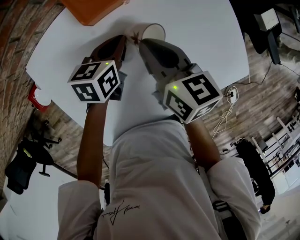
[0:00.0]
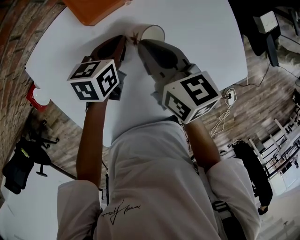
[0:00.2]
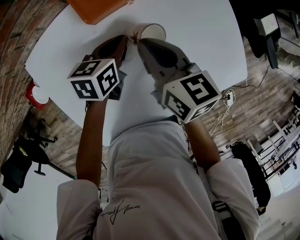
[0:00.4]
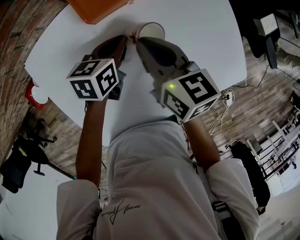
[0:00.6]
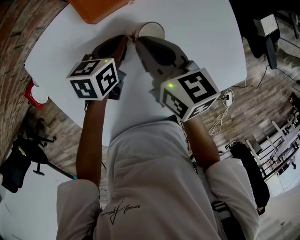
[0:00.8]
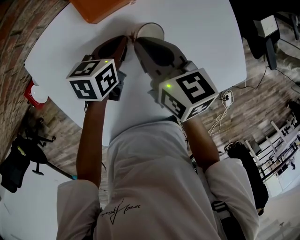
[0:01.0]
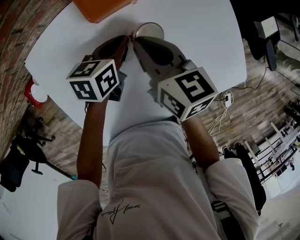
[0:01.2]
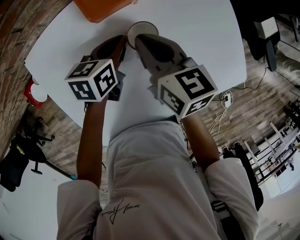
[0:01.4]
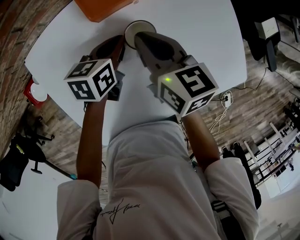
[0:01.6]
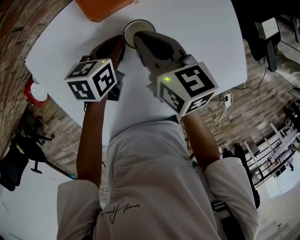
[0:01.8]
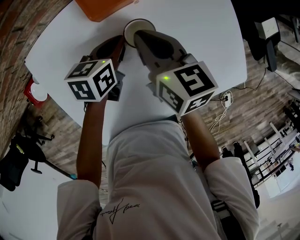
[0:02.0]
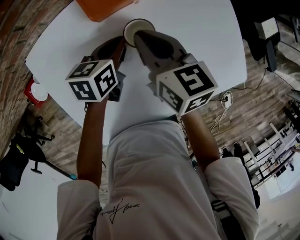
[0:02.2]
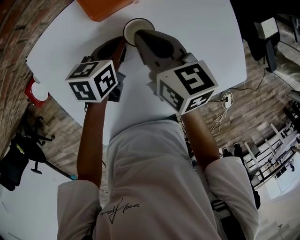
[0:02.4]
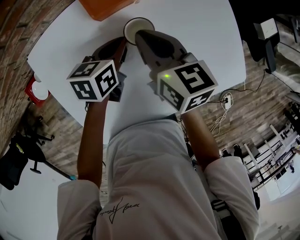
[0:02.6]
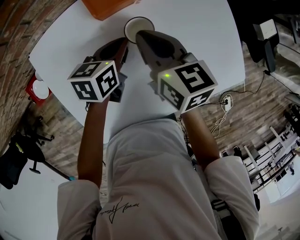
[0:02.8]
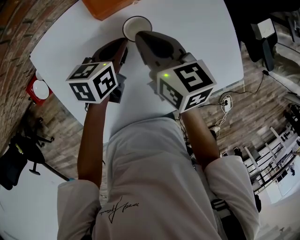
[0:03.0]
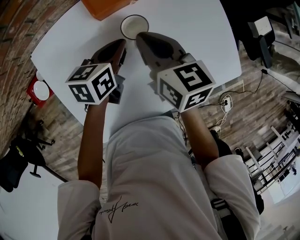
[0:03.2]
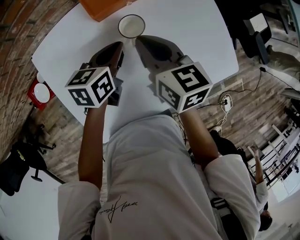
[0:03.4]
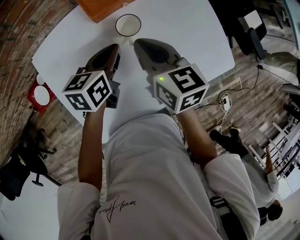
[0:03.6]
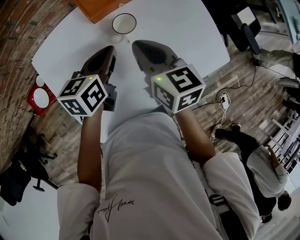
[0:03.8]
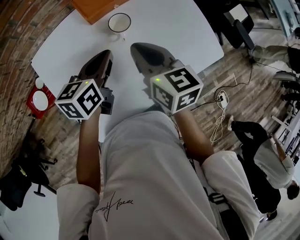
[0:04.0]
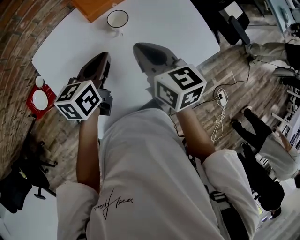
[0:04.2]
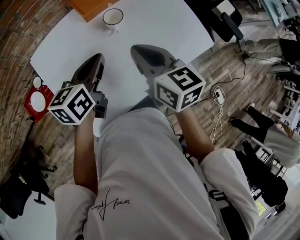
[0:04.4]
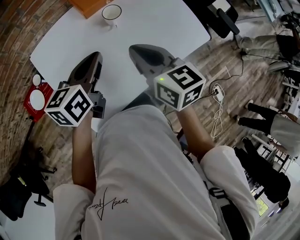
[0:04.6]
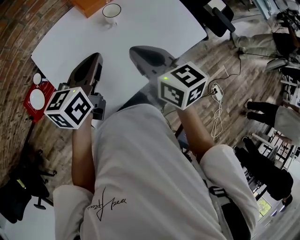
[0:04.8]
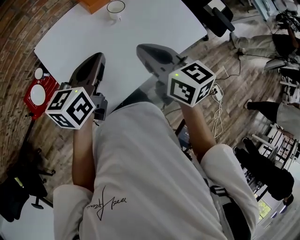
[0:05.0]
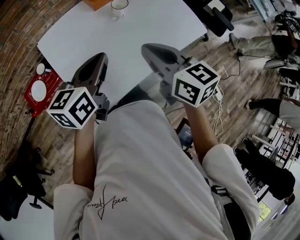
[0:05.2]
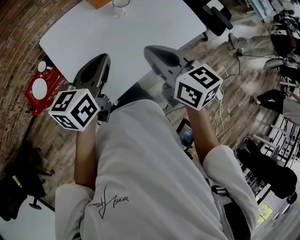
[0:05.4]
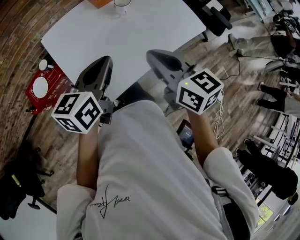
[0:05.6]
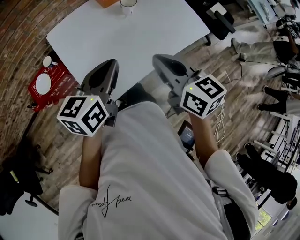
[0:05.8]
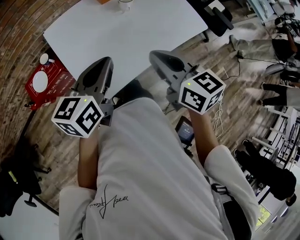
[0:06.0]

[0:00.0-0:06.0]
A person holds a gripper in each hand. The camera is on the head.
0:00.0 to 0:03.0: There are only small adjustments of the grippers.
0:03.0 to 0:04.4: The two grippers go roughly 15 cm backward and upward.
0:04.4 to 0:06.0: The grippers both shift backward by about 20 cm.

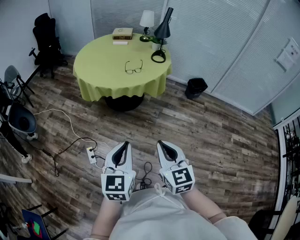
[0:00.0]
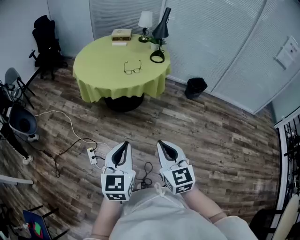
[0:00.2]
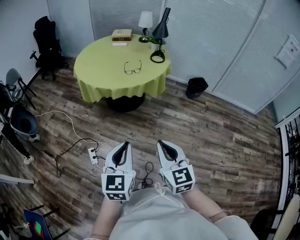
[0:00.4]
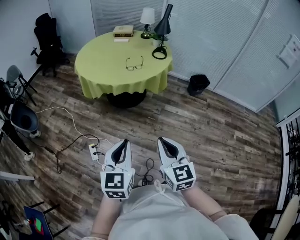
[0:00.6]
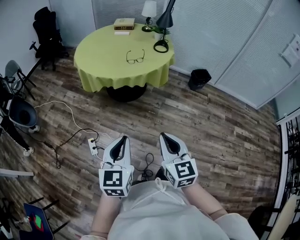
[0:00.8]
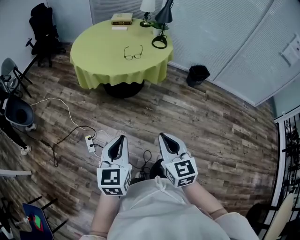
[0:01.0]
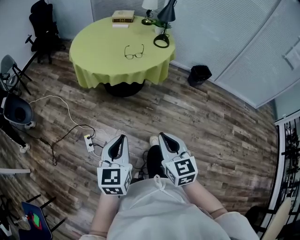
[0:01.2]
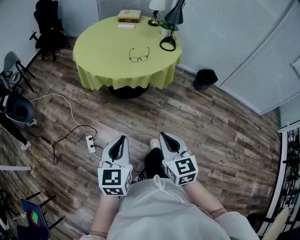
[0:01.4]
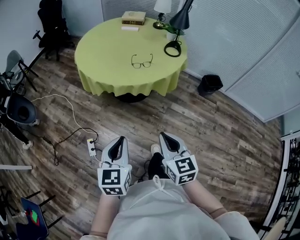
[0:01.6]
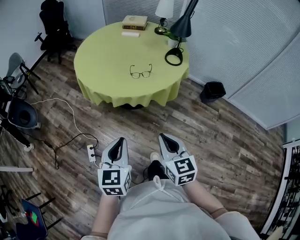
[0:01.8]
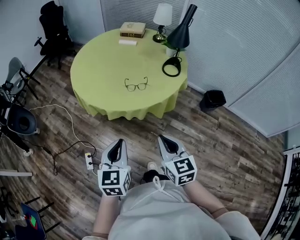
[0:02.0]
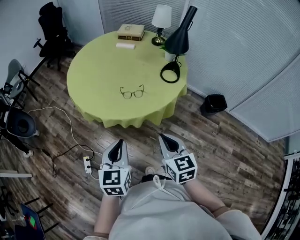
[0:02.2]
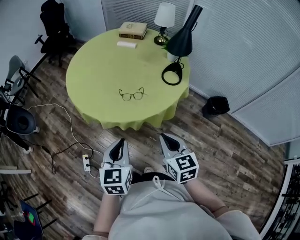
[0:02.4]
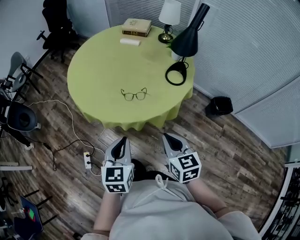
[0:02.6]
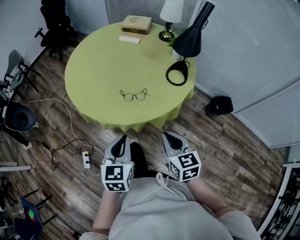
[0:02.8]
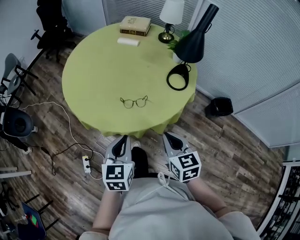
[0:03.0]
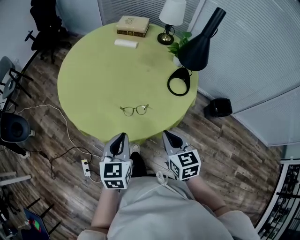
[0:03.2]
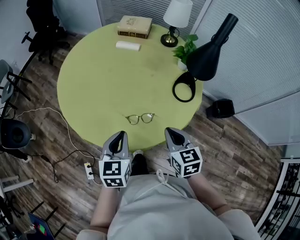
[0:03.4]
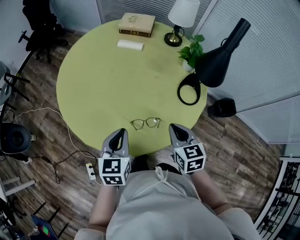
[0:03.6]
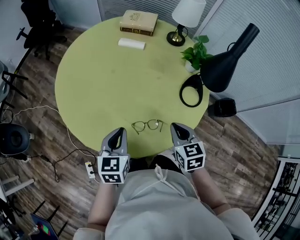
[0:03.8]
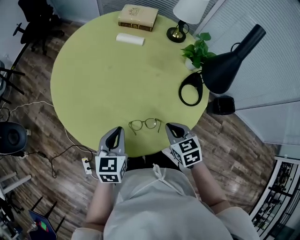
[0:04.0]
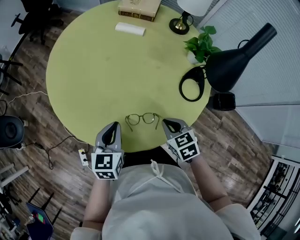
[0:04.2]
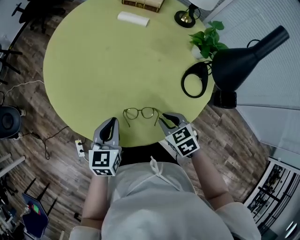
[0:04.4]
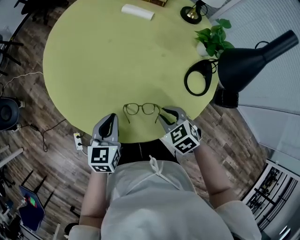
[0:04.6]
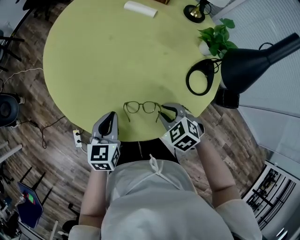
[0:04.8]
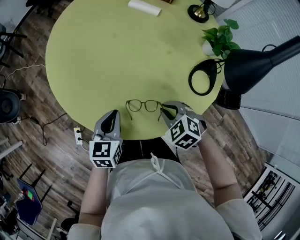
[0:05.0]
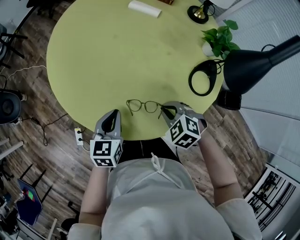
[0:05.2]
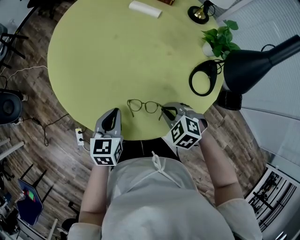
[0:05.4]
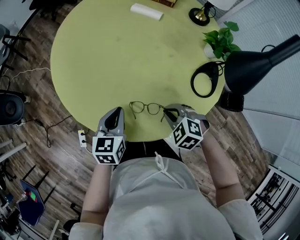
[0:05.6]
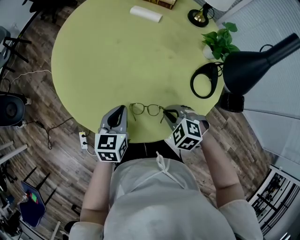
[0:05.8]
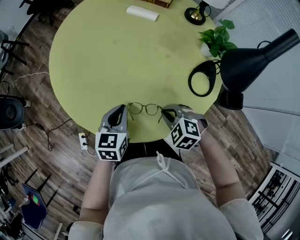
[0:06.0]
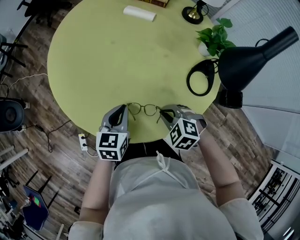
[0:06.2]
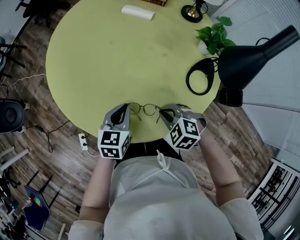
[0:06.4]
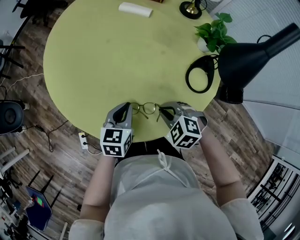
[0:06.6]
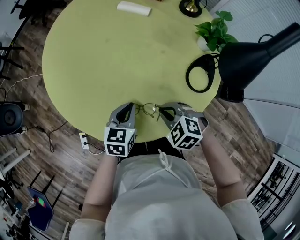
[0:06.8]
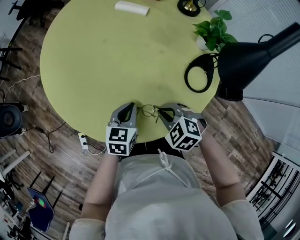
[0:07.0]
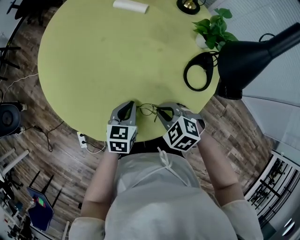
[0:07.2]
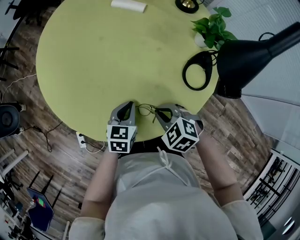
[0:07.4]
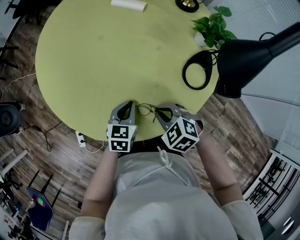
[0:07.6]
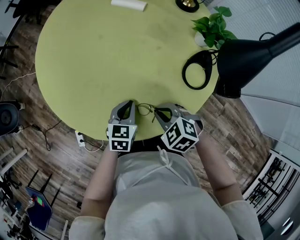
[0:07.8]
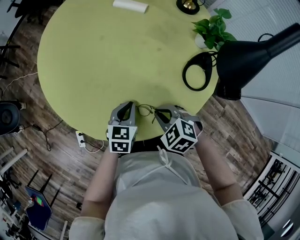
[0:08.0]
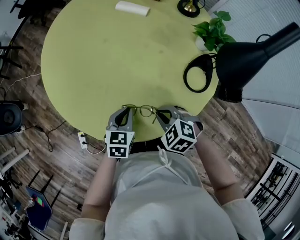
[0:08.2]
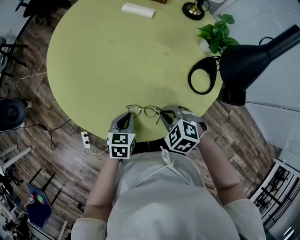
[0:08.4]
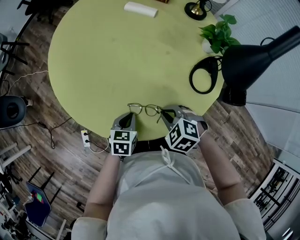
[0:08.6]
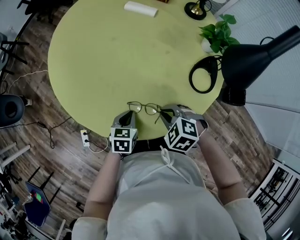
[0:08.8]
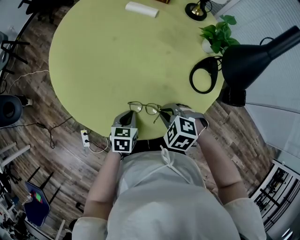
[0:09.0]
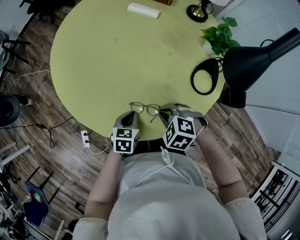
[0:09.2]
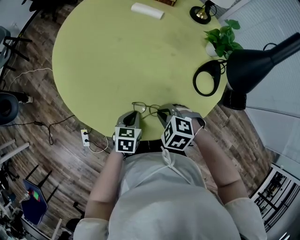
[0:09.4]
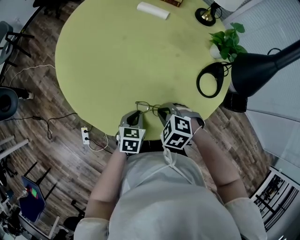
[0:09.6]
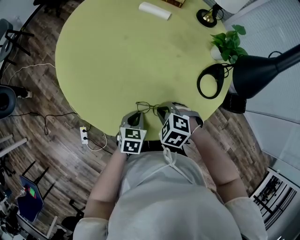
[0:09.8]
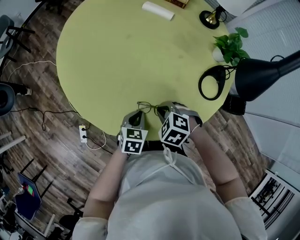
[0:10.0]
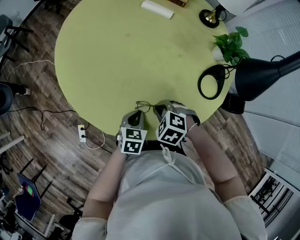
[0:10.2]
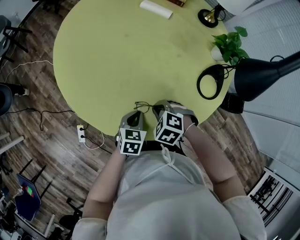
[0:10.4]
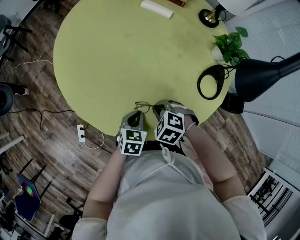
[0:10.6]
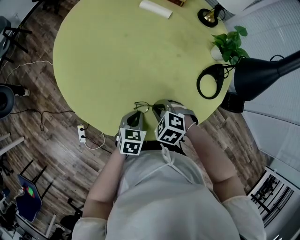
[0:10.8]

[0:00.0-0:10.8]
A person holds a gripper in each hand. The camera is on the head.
0:00.0 to 0:01.6: The grippers both shift forward by roughly 15 cm.
0:01.6 to 0:03.0: The grippers both shift forward and to the right by approximately 40 cm.
0:03.0 to 0:04.6: The two grippers go roughly 25 cm forward and downward. The right gripper swivels about 40 degrees, and opens.
0:04.6 to 0:06.2: The right gripper swivels about 20 degrees.
0:06.2 to 0:07.8: The left gripper is displaced downward and to the right by roughly 10 cm.
0:07.8 to 0:09.2: The left gripper travels to the left by approximately 5 cm.
0:09.2 to 0:10.8: The right gripper shifts by approximately 5 cm.

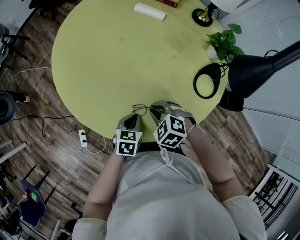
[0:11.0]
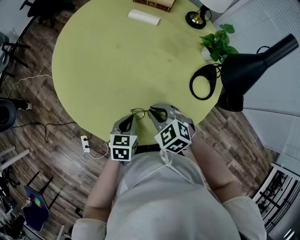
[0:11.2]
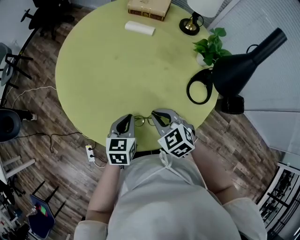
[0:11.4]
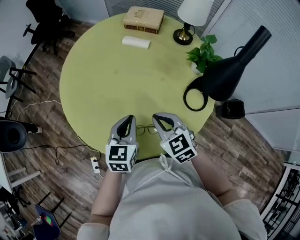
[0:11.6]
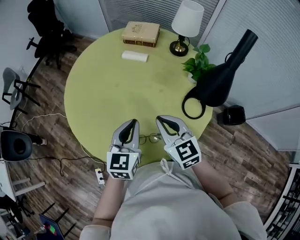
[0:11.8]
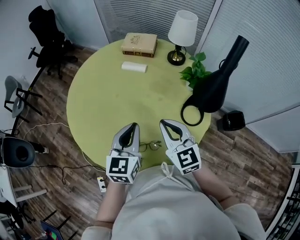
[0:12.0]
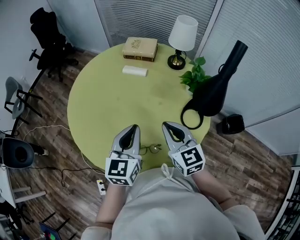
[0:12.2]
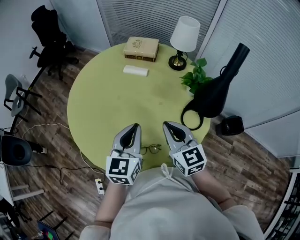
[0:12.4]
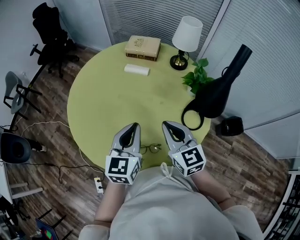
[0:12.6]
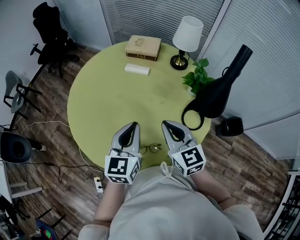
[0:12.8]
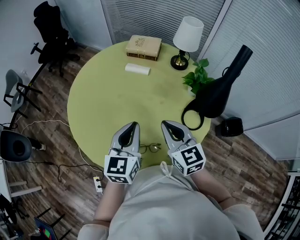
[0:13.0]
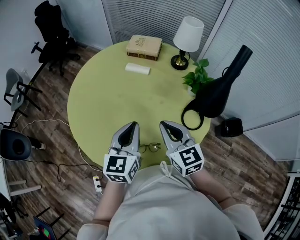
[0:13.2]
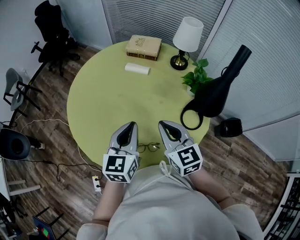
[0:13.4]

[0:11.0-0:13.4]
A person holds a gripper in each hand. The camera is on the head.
0:11.0 to 0:12.2: The two grippers go approximately 25 cm upward. The right gripper points its fingers about 50 degrees further upward. Meanwhile the left gripper angles its fingers upward, by about 40 degrees.
0:12.2 to 0:13.4: The grippers make only small movements.

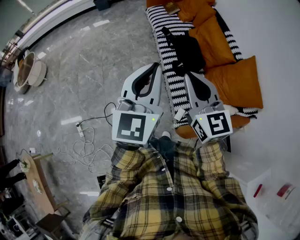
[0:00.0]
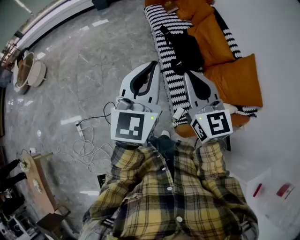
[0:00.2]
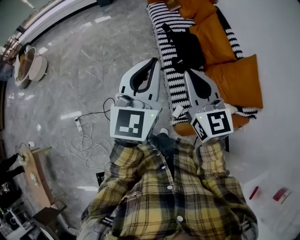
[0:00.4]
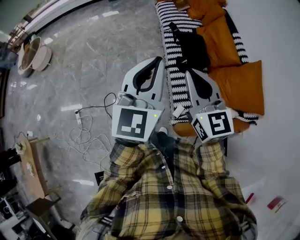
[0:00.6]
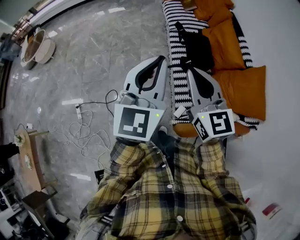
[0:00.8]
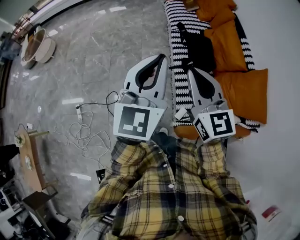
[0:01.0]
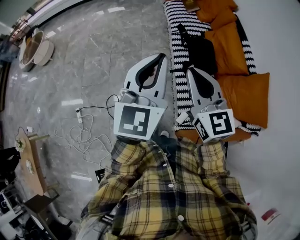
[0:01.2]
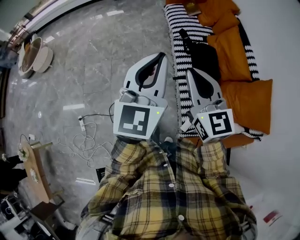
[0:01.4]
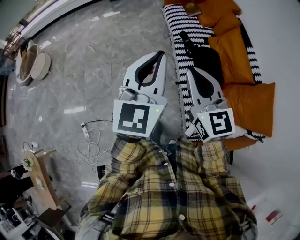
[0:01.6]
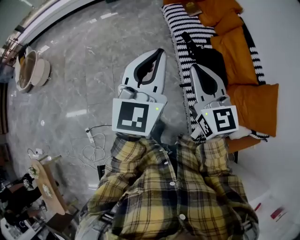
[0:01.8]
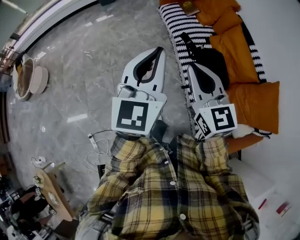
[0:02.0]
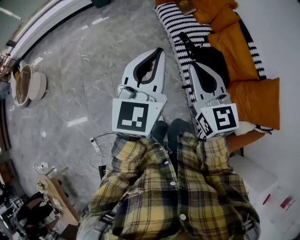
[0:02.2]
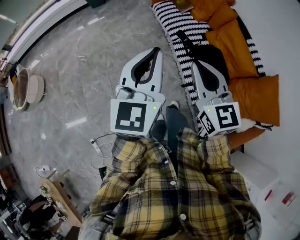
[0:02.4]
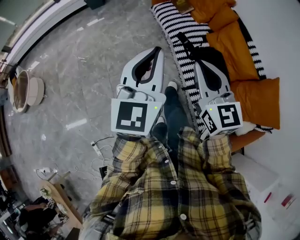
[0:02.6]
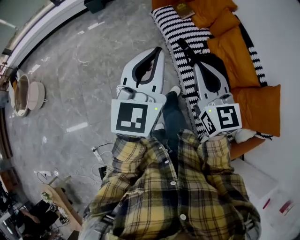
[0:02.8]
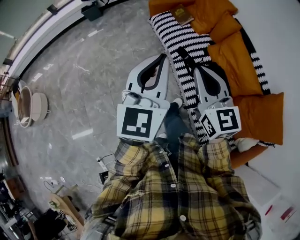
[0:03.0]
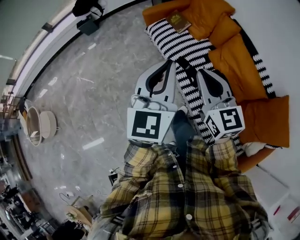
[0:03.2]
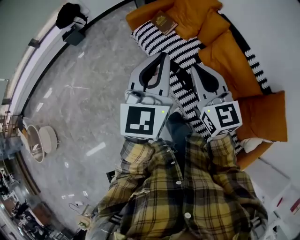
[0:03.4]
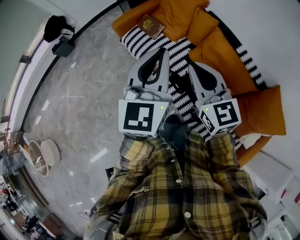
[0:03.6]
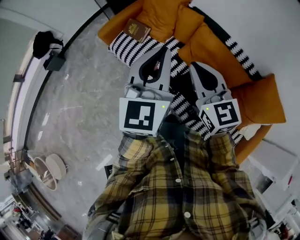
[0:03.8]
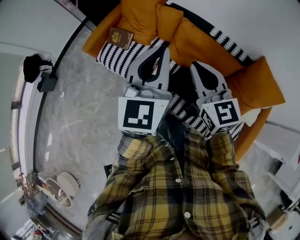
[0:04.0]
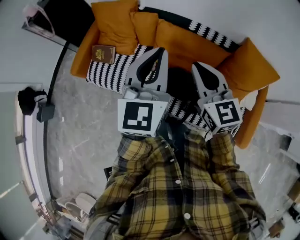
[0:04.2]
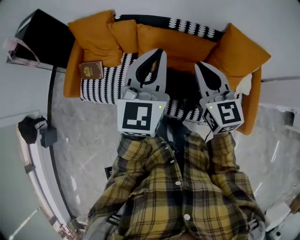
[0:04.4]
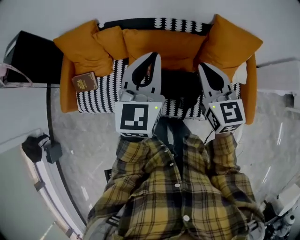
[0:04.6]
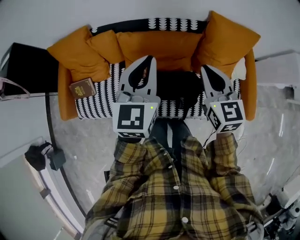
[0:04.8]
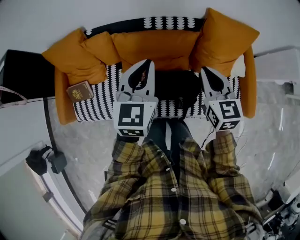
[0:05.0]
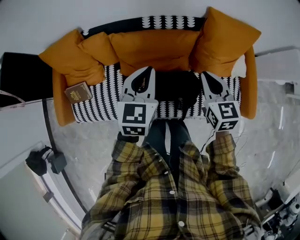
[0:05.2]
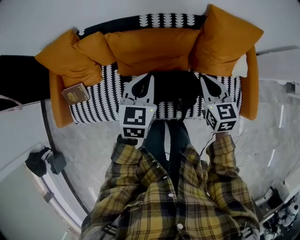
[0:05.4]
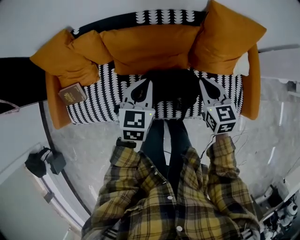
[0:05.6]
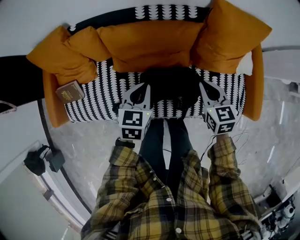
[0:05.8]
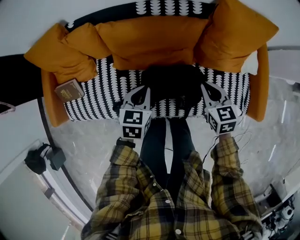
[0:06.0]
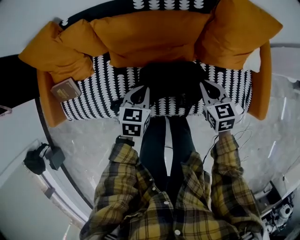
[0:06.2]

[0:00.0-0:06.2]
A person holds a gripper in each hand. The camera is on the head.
0:00.0 to 0:01.6: The left gripper is displaced forward by approximately 20 cm, while the right gripper goes approximately 20 cm forward and to the left.
0:01.6 to 0:03.2: Both grippers travel together forward, some 35 cm.
0:03.2 to 0:04.6: The left gripper changes place by some 35 cm, and changes its angle by roughly 60 degrees, while the right gripper shifts by about 30 cm, and changes its angle by roughly 60 degrees.
0:04.6 to 0:06.2: Both grippers move downward, about 35 cm. The right gripper turns by approximately 30 degrees, while the left gripper points its fingers some 40 degrees further downward.
